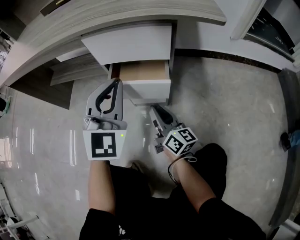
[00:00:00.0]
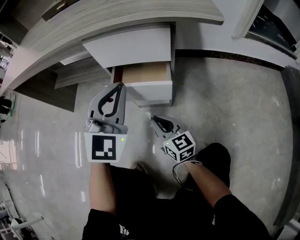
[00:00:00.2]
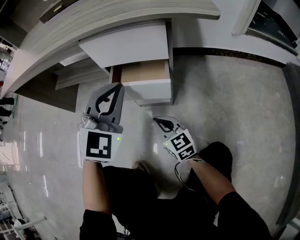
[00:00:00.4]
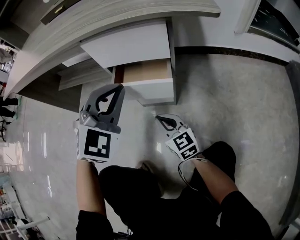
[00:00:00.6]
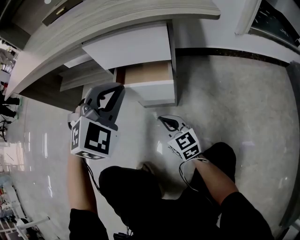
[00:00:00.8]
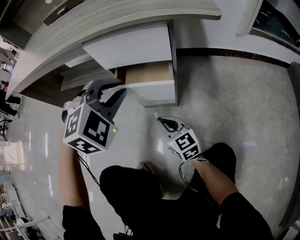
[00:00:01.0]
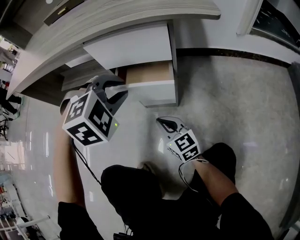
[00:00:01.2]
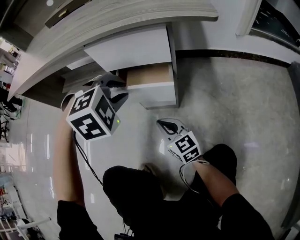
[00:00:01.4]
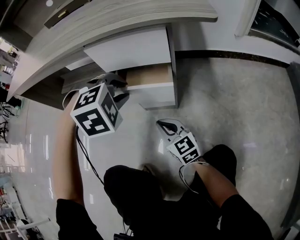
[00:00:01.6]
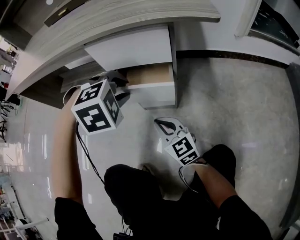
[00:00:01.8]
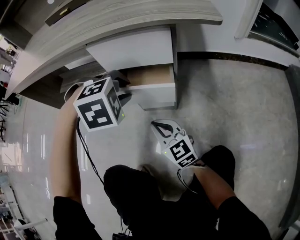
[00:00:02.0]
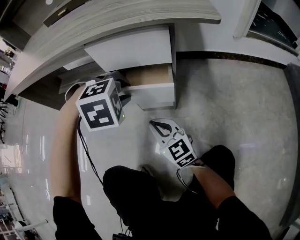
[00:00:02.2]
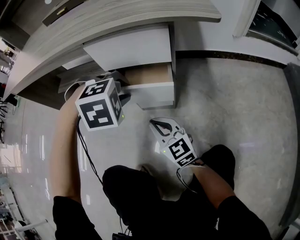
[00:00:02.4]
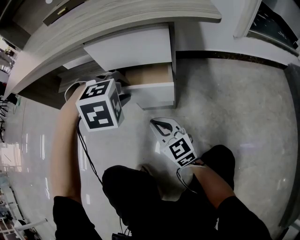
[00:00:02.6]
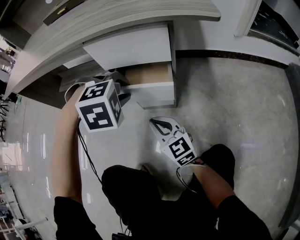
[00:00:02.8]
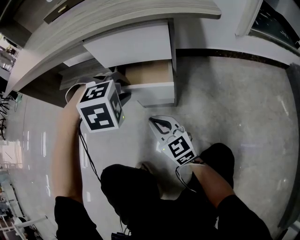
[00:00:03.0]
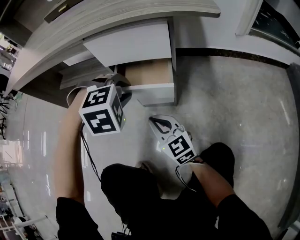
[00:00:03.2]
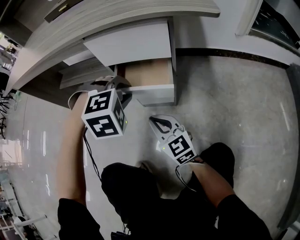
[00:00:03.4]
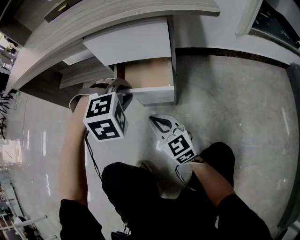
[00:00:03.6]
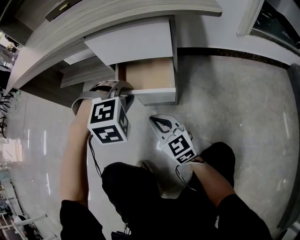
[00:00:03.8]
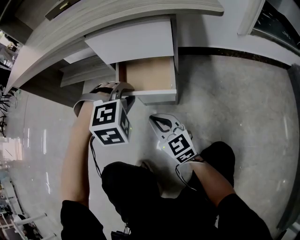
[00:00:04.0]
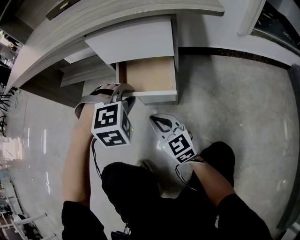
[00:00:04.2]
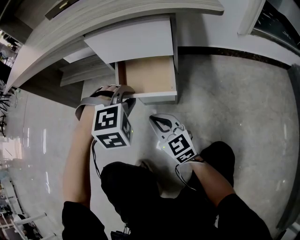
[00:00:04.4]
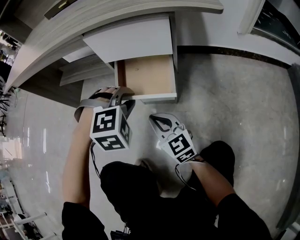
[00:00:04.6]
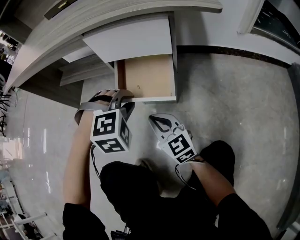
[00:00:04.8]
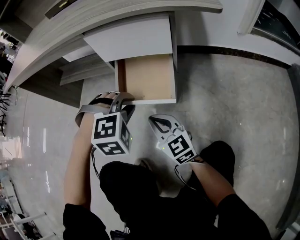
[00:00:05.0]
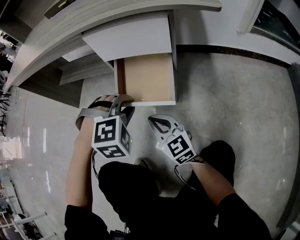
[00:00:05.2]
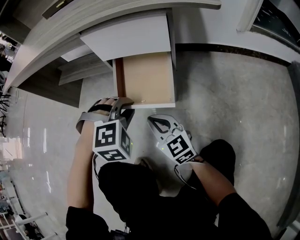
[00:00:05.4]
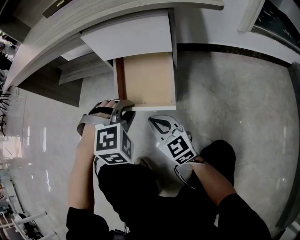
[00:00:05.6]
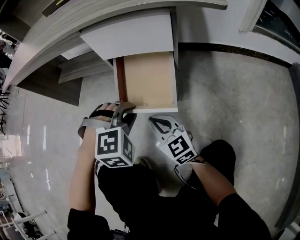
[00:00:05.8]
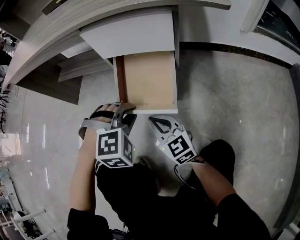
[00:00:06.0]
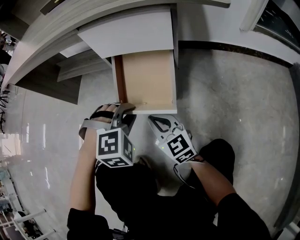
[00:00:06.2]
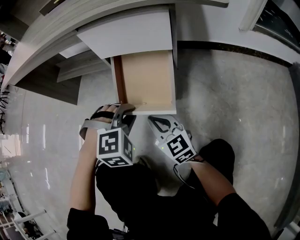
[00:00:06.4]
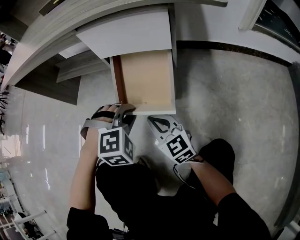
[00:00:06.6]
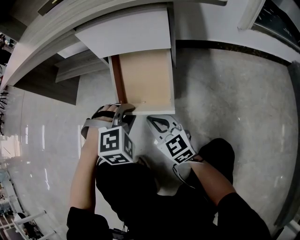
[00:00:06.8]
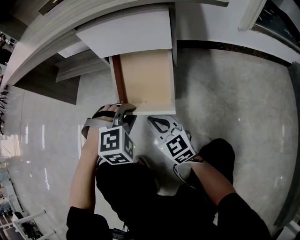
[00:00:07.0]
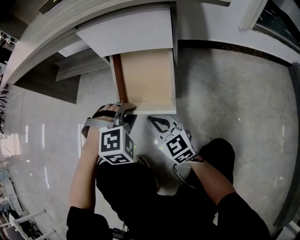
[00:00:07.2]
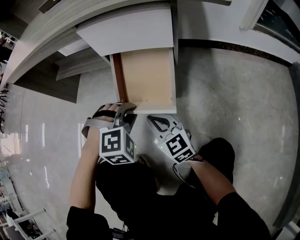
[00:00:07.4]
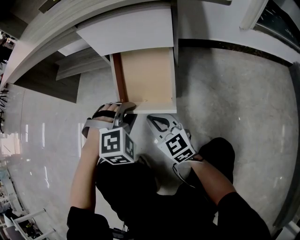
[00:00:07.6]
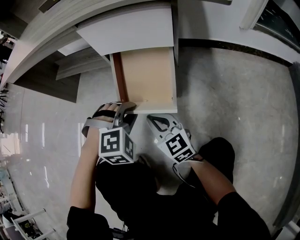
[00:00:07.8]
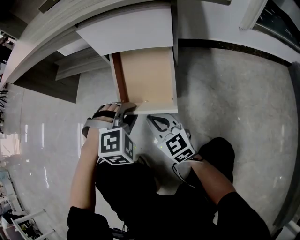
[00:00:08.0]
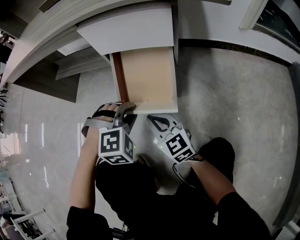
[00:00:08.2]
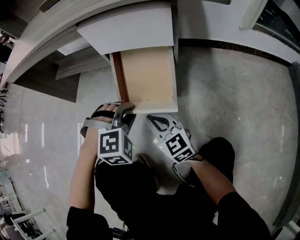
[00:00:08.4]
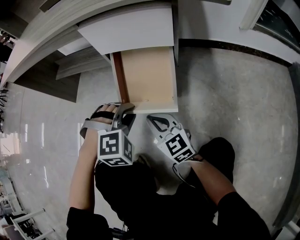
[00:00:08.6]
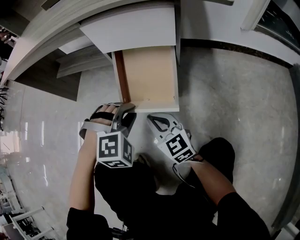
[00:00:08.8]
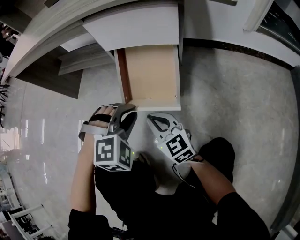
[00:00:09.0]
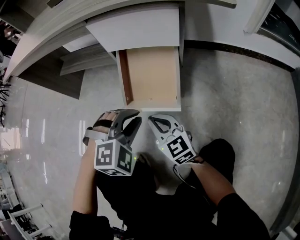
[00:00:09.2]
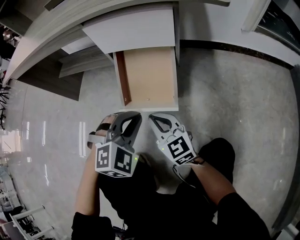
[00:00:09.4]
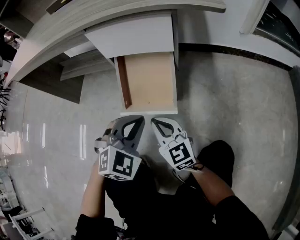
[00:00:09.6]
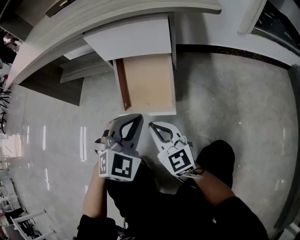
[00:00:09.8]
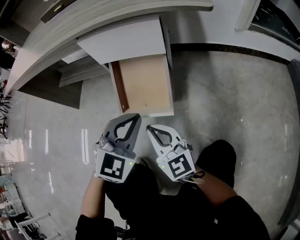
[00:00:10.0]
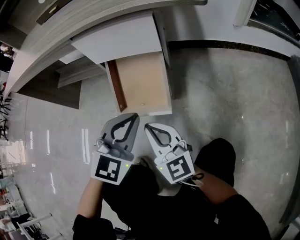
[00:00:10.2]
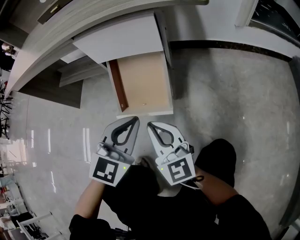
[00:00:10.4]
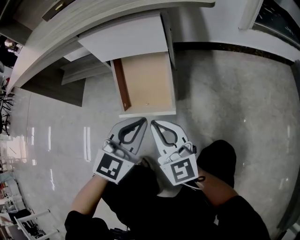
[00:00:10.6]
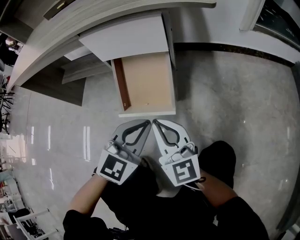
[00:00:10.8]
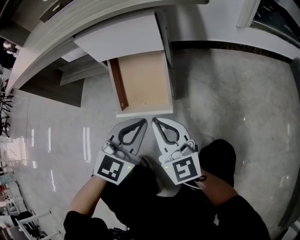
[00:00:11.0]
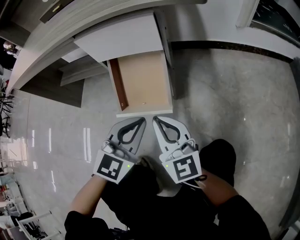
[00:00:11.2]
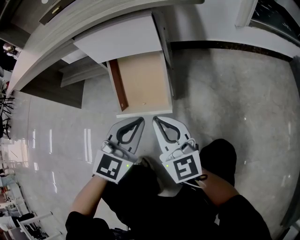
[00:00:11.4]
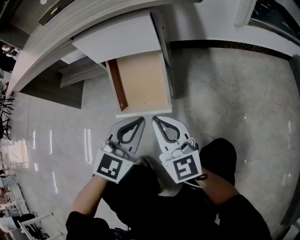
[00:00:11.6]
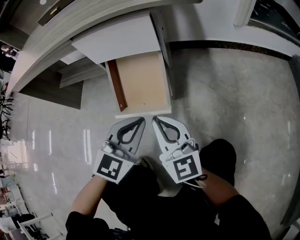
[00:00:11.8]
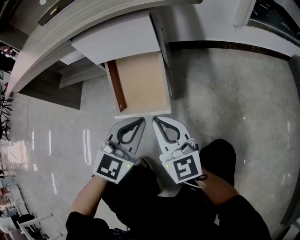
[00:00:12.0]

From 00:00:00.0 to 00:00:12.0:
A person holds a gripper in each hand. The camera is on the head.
From 00:00:00.0 to 00:00:01.6: The right gripper changes place by roughly 5 cm, and turns by approximately 40 degrees. Meanwhile the left gripper shifts roughly 5 cm downward, tips its fingers downward by approximately 60 degrees, and opens up.
From 00:00:01.6 to 00:00:04.4: The grippers move only a little.
From 00:00:04.4 to 00:00:06.0: The left gripper moves roughly 5 cm.
From 00:00:06.0 to 00:00:09.0: There are only small adjustments of the grippers.
From 00:00:09.0 to 00:00:10.4: The grippers both shift upward by approximately 10 cm. The left gripper points its fingers approximately 30 degrees further upward.
From 00:00:10.4 to 00:00:12.0: The grippers make only small movements.

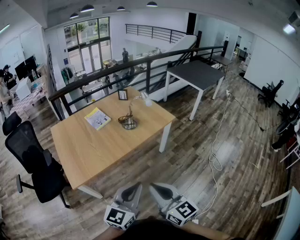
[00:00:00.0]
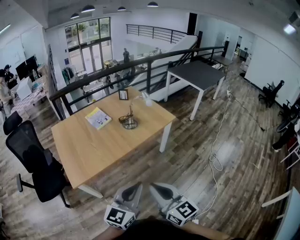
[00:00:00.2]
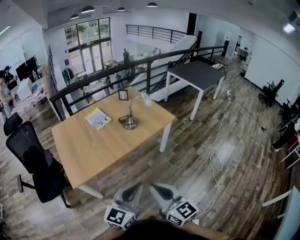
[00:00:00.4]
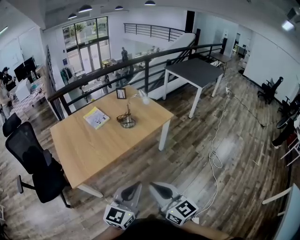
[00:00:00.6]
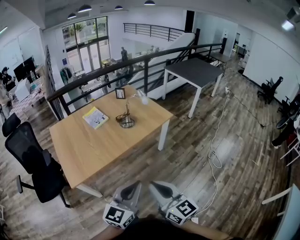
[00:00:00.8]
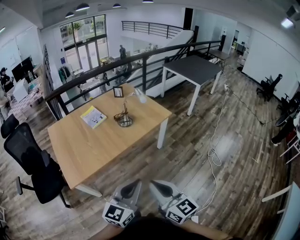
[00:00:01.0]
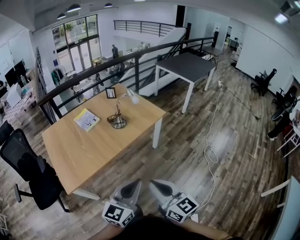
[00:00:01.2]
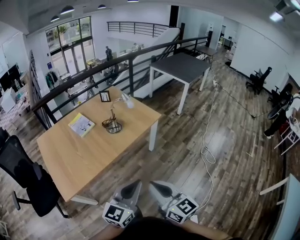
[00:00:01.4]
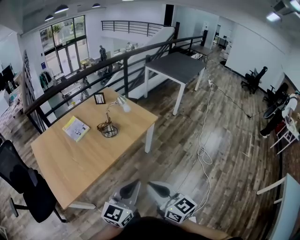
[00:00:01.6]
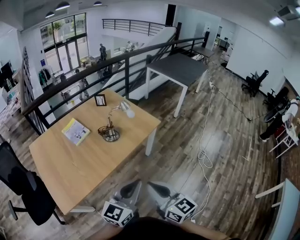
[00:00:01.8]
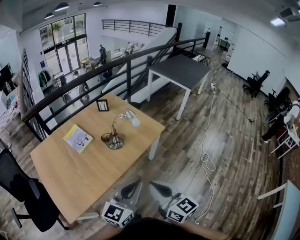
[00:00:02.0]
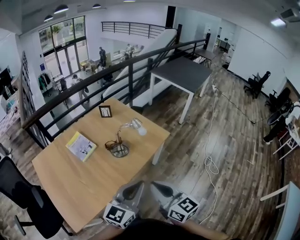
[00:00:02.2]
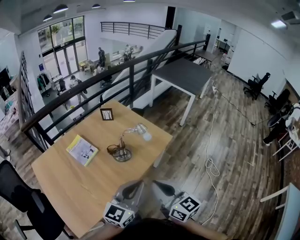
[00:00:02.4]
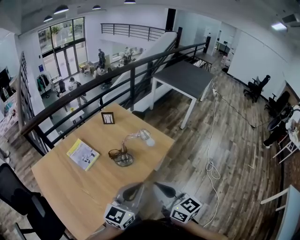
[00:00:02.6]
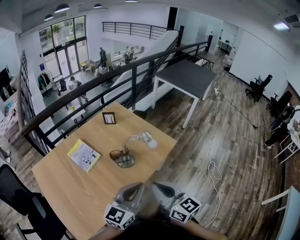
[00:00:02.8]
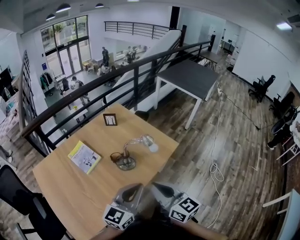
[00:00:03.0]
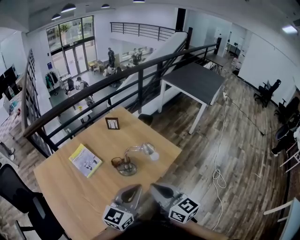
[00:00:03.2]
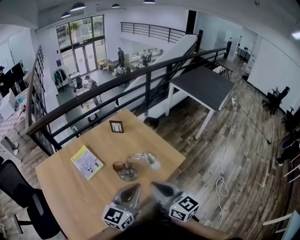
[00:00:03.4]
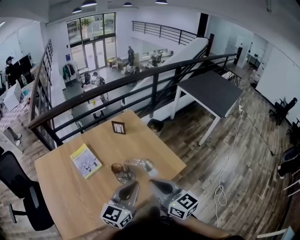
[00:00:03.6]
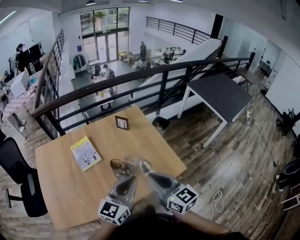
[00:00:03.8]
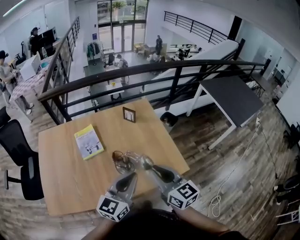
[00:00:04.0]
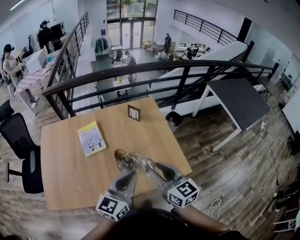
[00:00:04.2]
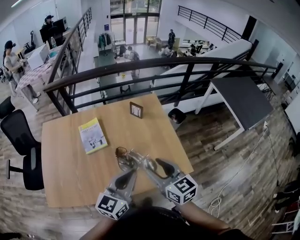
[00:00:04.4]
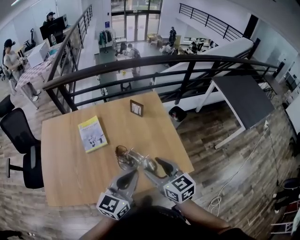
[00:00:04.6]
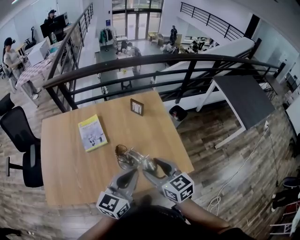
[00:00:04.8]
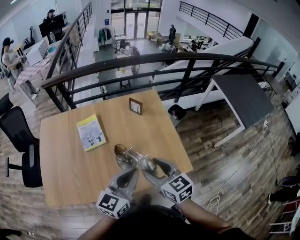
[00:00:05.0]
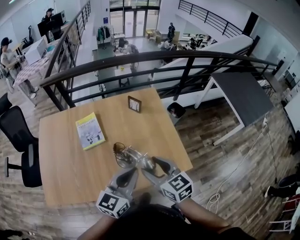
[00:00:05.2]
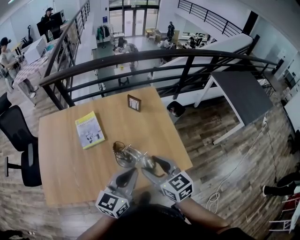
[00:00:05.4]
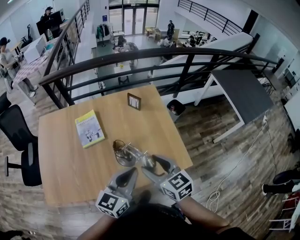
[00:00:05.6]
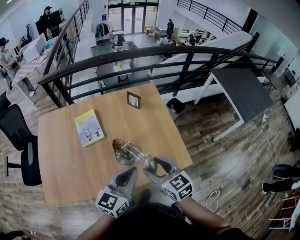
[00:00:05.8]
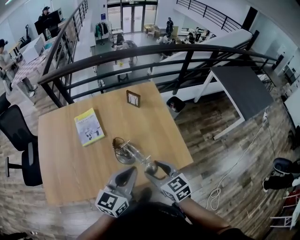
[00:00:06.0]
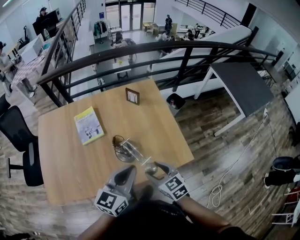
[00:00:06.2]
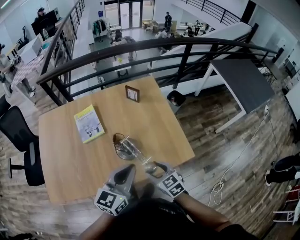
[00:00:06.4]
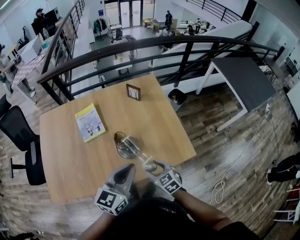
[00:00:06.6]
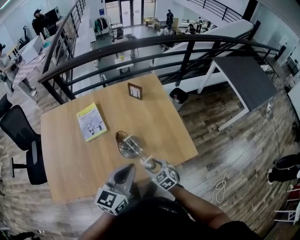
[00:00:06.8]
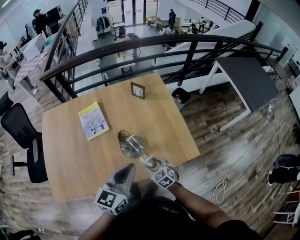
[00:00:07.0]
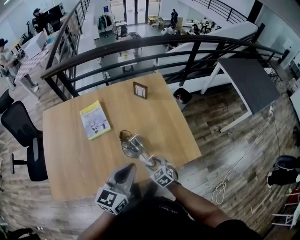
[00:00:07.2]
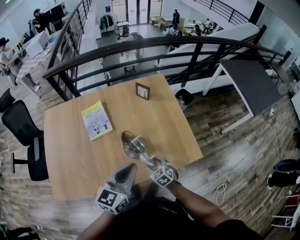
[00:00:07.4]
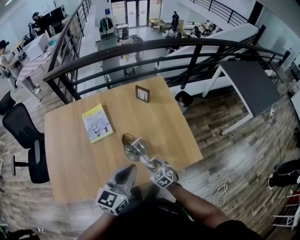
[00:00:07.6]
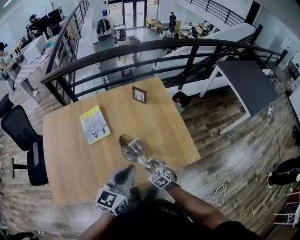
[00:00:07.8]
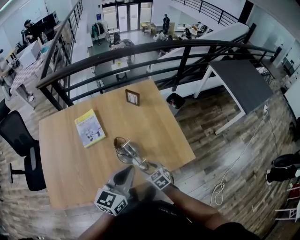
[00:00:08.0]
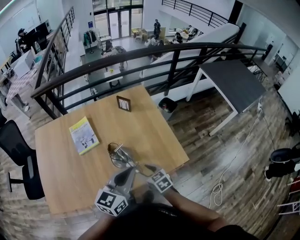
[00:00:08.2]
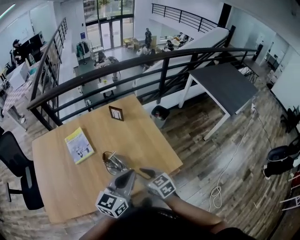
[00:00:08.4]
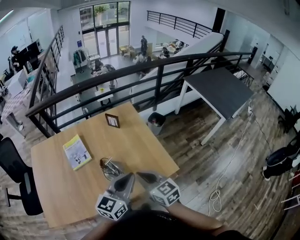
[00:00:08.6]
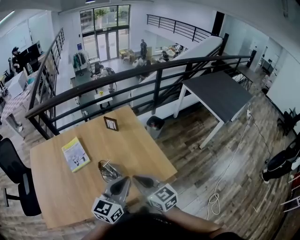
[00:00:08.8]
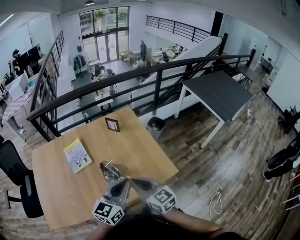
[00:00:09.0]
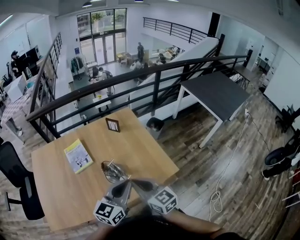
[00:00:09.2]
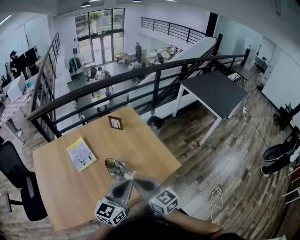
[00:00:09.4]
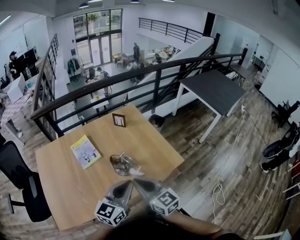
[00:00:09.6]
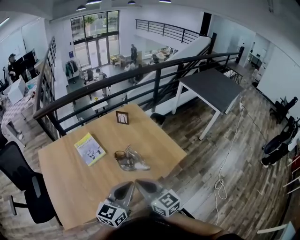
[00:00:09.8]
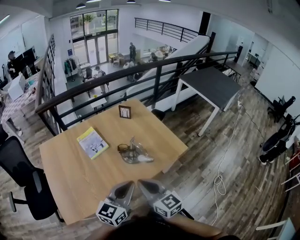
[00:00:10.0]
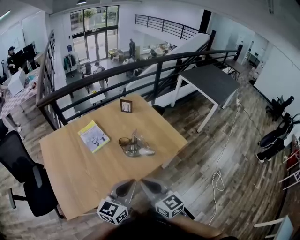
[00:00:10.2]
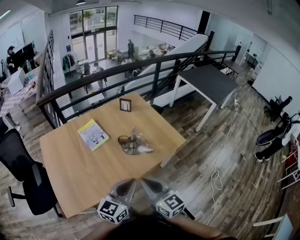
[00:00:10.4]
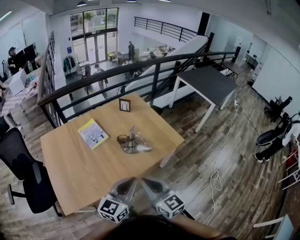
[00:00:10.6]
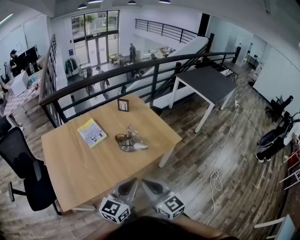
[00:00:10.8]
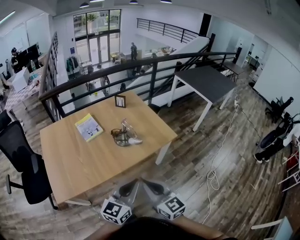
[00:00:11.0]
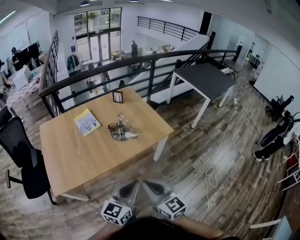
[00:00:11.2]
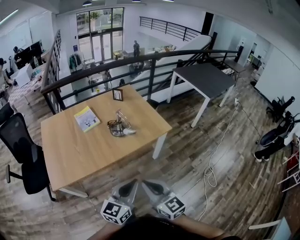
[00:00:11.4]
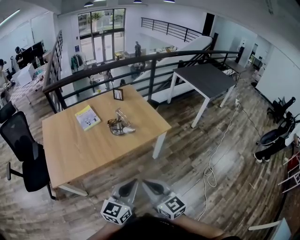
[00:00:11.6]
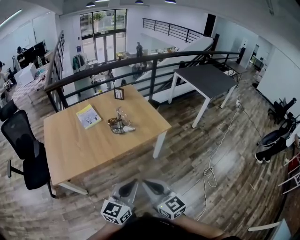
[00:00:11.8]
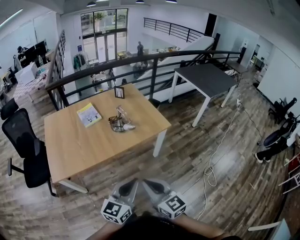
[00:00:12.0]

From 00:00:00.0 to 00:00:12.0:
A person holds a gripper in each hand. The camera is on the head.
From 00:00:00.0 to 00:00:01.6: Both grippers travel together forward and to the right, approximately 10 cm.
From 00:00:01.6 to 00:00:03.0: Both grippers travel together forward and to the left, approximately 30 cm.
From 00:00:03.0 to 00:00:04.4: The left gripper shifts by about 20 cm, and rotates some 30 degrees. The right gripper changes place by some 25 cm, turns by about 30 degrees, and opens up.
From 00:00:04.4 to 00:00:06.0: The right gripper travels downward by roughly 10 cm.
From 00:00:06.0 to 00:00:07.6: The right gripper goes approximately 25 cm downward, and changes its angle by some 30 degrees.
From 00:00:07.6 to 00:00:09.0: The left gripper shifts about 10 cm to the right. Meanwhile the right gripper goes approximately 30 cm upward, tips its fingers upward by roughly 40 degrees, and closes its fingers.
From 00:00:09.0 to 00:00:10.4: Both grippers travel together backward and to the left, roughly 25 cm.
From 00:00:10.4 to 00:00:12.0: The grippers both shift backward and to the right by approximately 25 cm.
